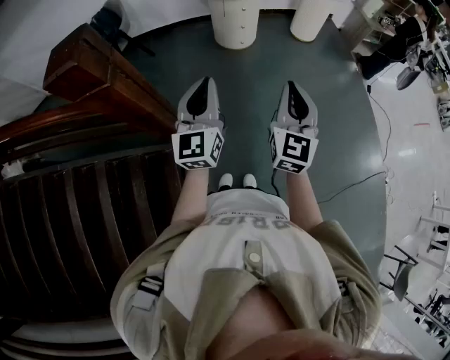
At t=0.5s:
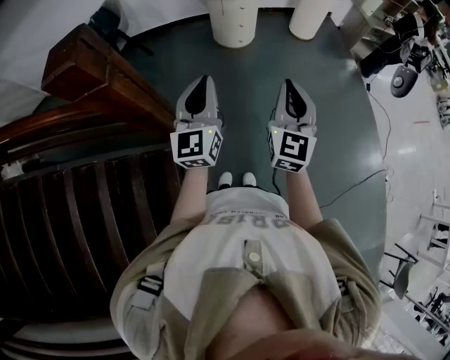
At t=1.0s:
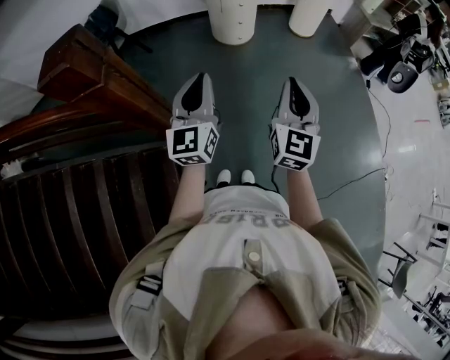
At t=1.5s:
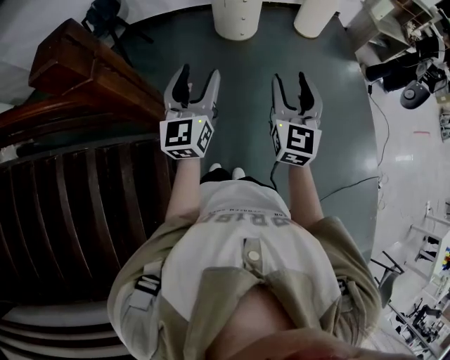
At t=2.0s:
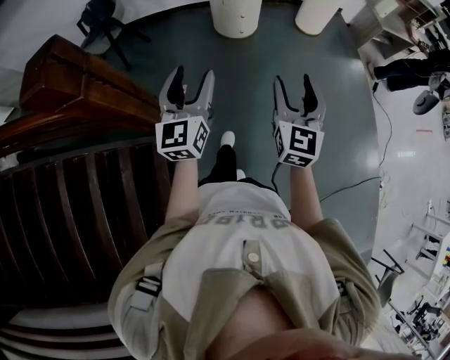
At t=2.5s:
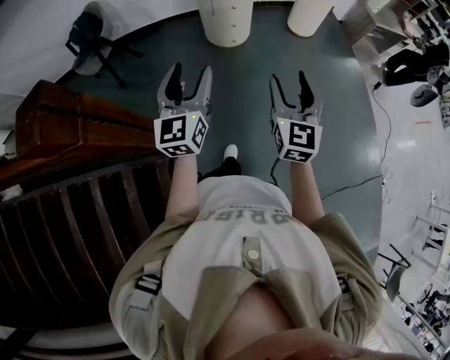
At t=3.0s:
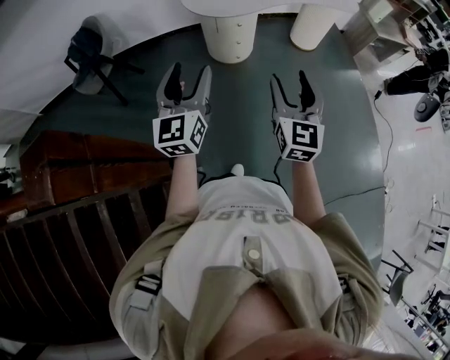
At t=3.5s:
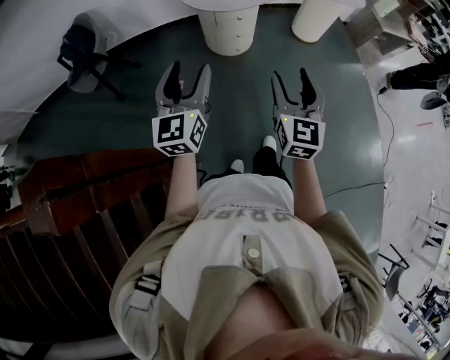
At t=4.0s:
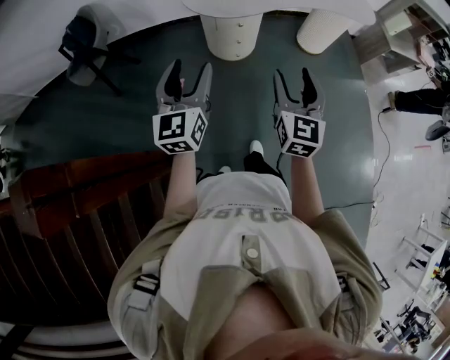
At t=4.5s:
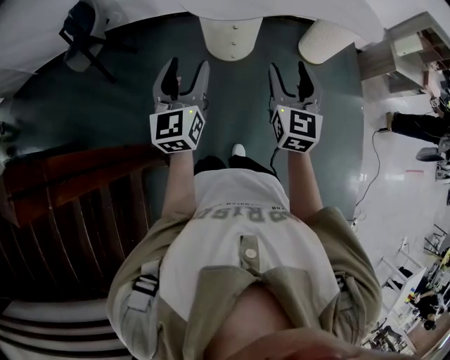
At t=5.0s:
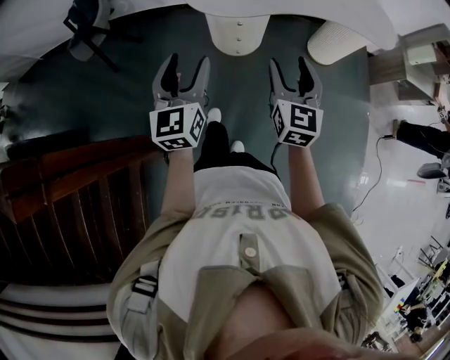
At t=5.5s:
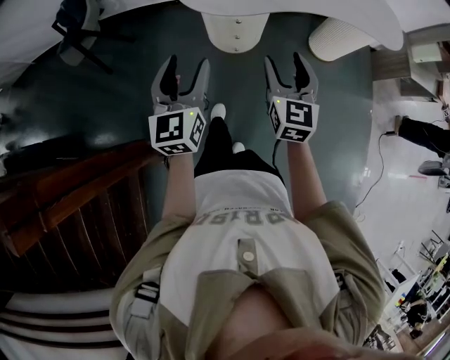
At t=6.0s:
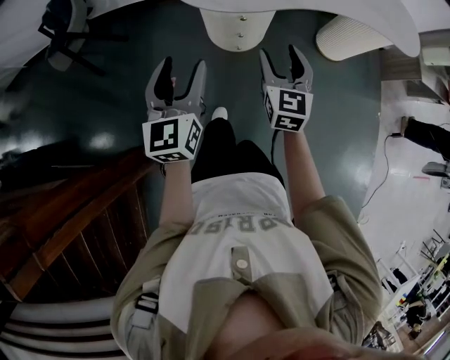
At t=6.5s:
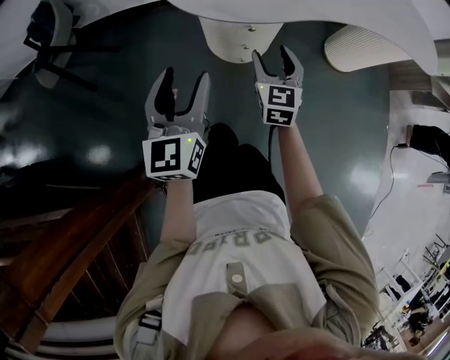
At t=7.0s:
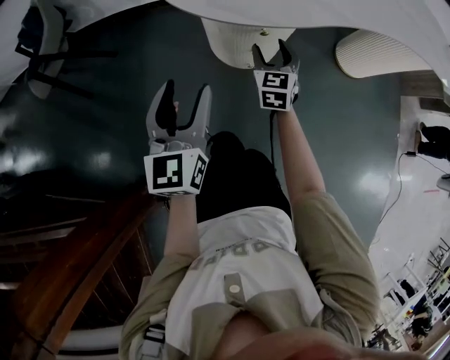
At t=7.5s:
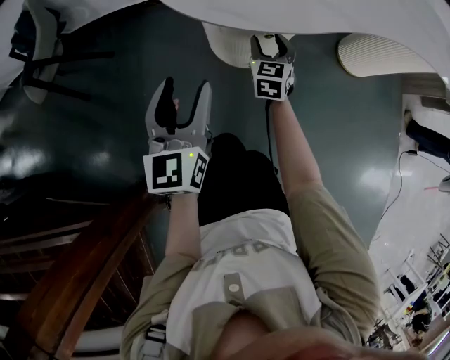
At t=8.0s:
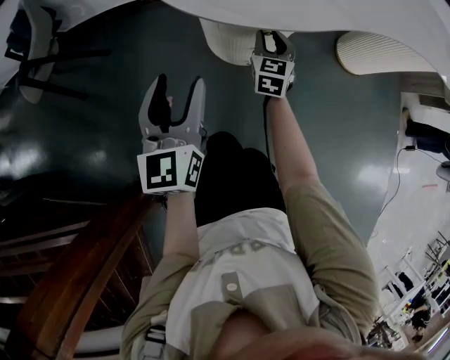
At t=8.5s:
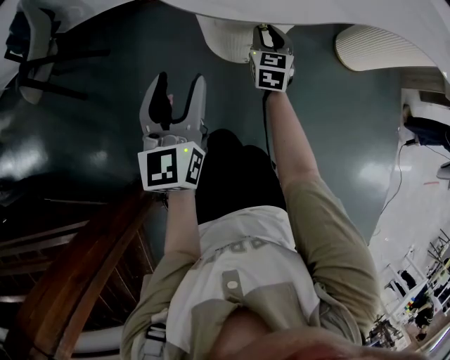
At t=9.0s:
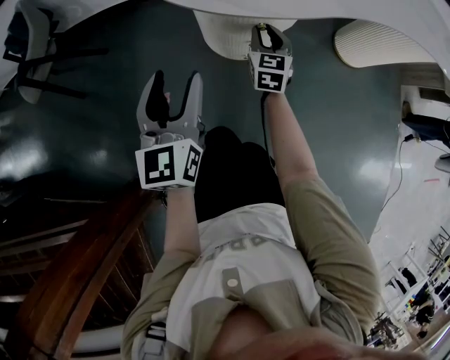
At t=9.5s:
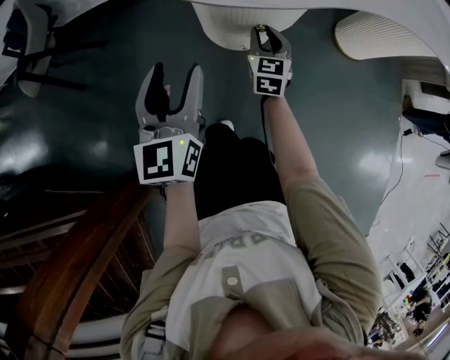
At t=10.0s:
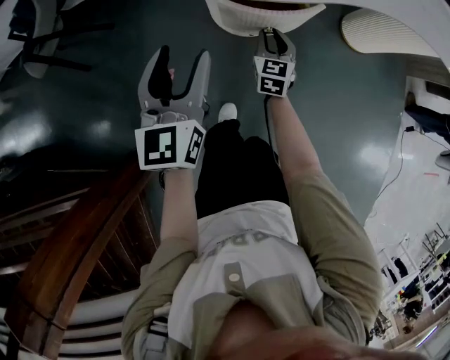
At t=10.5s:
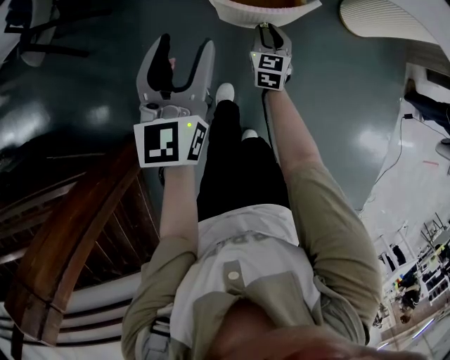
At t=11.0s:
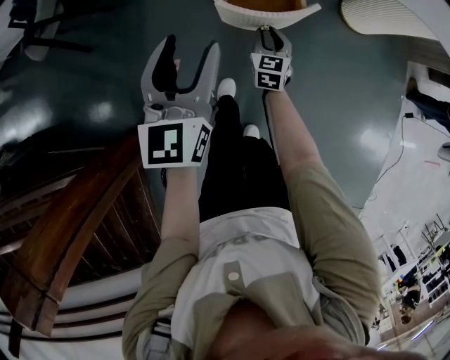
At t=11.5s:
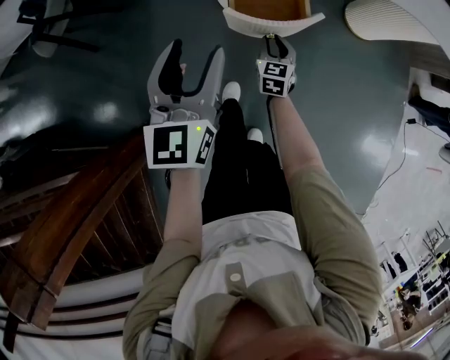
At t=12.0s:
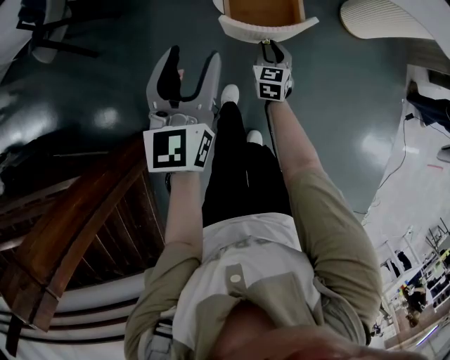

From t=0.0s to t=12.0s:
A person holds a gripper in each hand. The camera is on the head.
From t=0.0s to t=2.0s: The grippers both shift forward by about 10 cm. The right gripper opens; the left gripper opens up.
From t=2.0s to t=4.0s: Both grippers move forward, about 35 cm.
From t=4.0s to t=6.0s: Both grippers move forward and downward, approximately 30 cm.
From t=6.0s to t=8.0s: The left gripper goes about 25 cm downward and forward. Meanwhile the right gripper goes approximately 40 cm downward and forward, and closes.
From t=8.0s to t=10.0s: The left gripper heads upward, covering approximately 5 cm. The right gripper moves backward, roughly 10 cm.
From t=10.0s to t=12.0s: The left gripper is displaced backward and upward by some 10 cm. The right gripper shifts about 10 cm backward.

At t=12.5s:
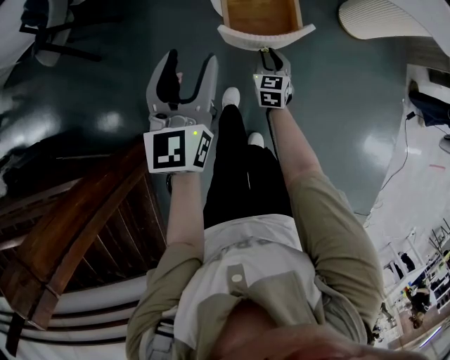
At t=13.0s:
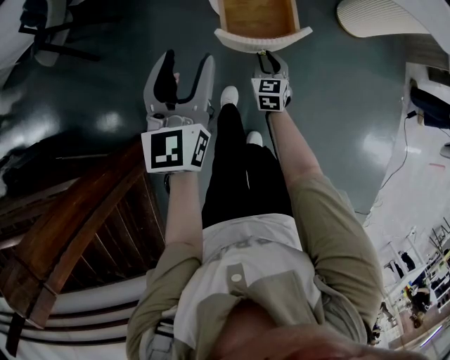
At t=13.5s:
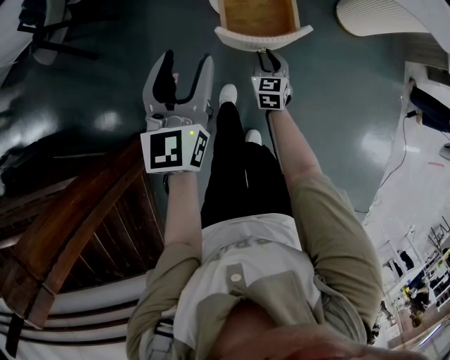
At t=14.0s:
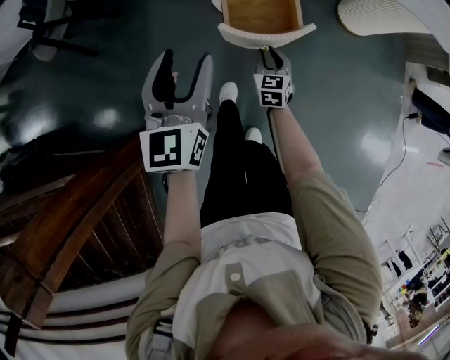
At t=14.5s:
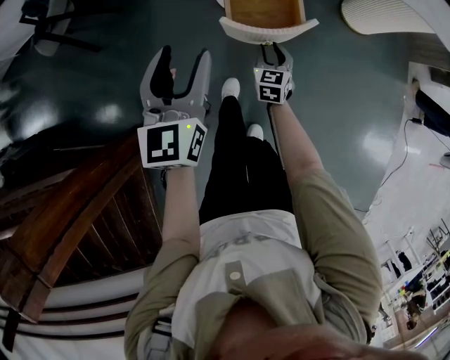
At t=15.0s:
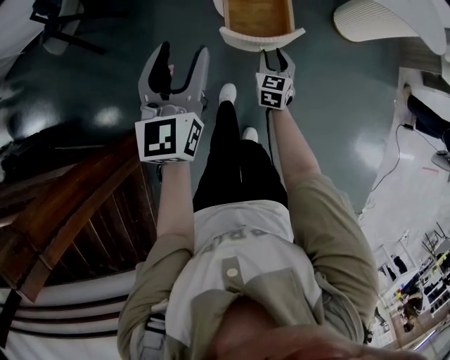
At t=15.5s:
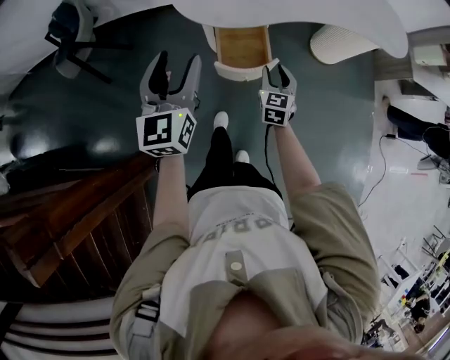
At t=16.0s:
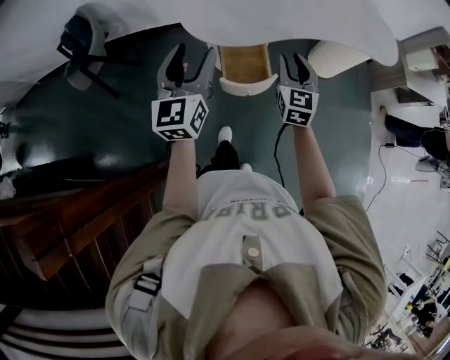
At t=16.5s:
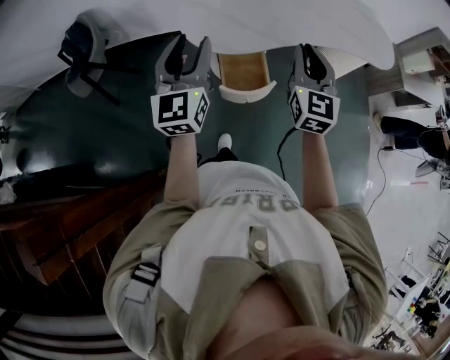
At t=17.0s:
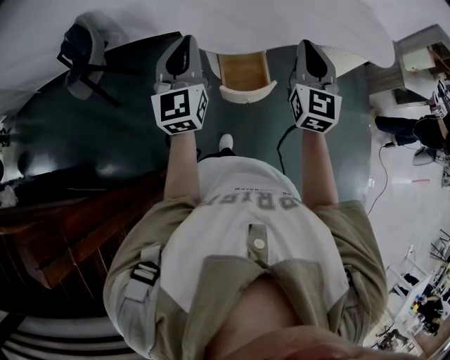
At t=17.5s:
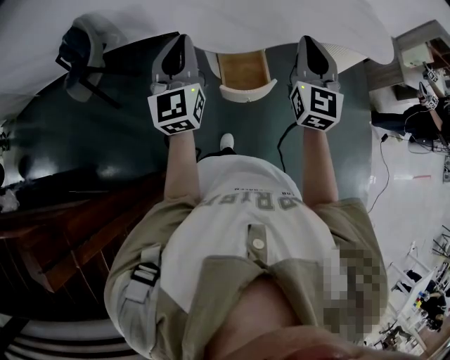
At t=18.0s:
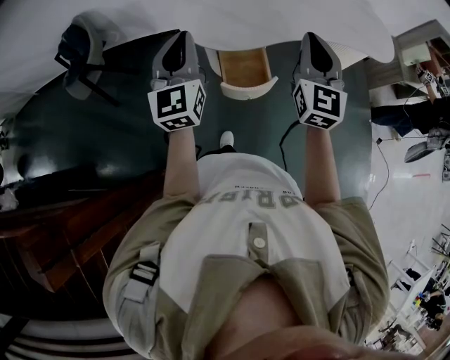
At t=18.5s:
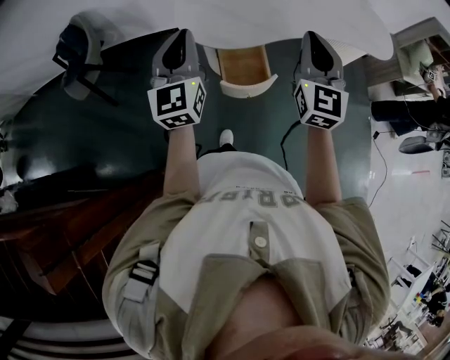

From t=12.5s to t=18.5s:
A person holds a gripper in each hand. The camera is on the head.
From t=12.5s to t=14.5s: The grippers stay close to where they were, moving slightly.
From t=14.5s to t=16.5s: The left gripper goes approximately 30 cm upward, while the right gripper moves upward, roughly 50 cm, and angles its fingers upward, by about 30 degrees.
From t=16.5s to t=18.5s: The left gripper closes up.

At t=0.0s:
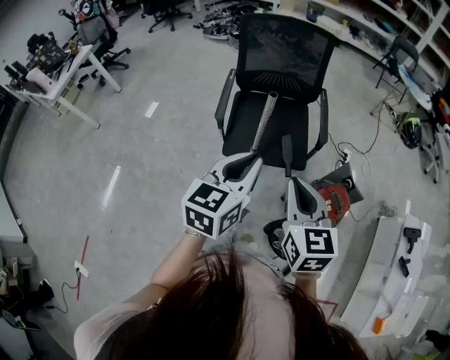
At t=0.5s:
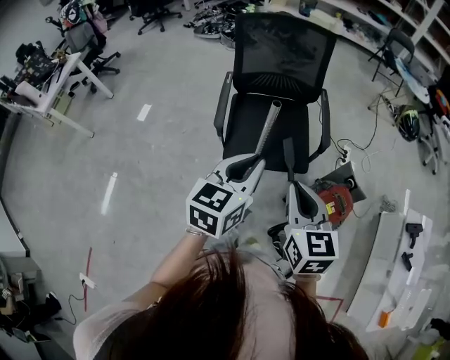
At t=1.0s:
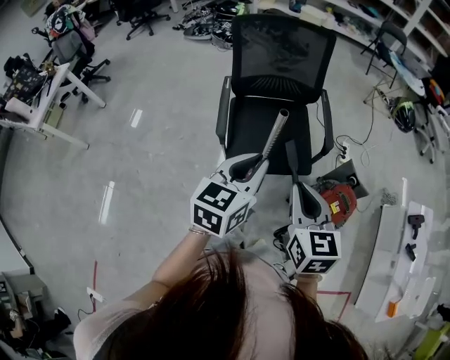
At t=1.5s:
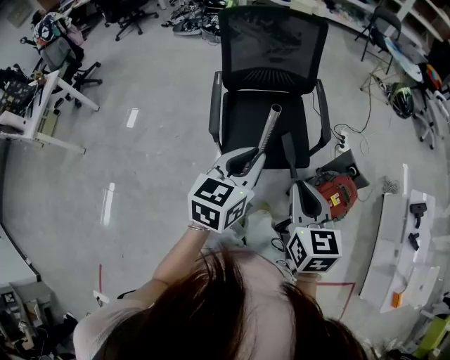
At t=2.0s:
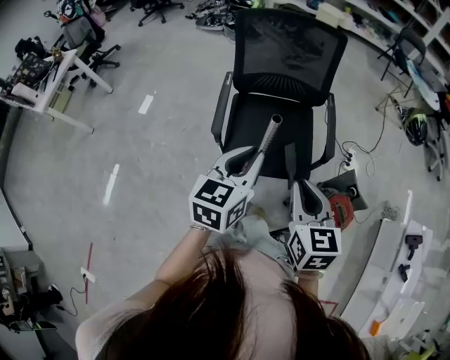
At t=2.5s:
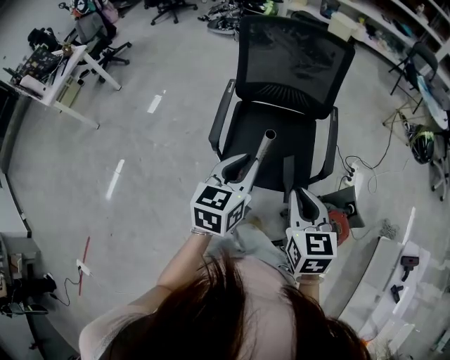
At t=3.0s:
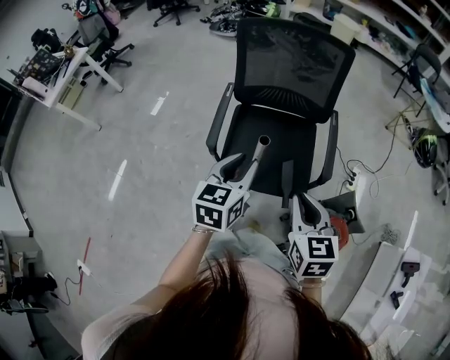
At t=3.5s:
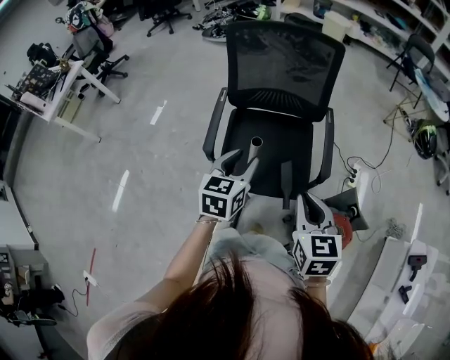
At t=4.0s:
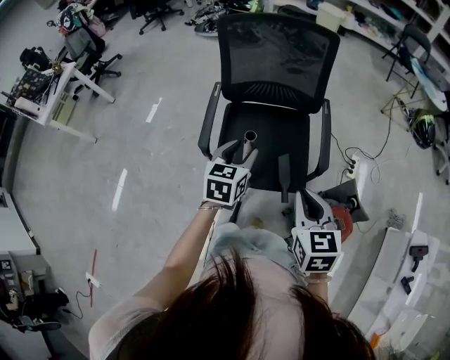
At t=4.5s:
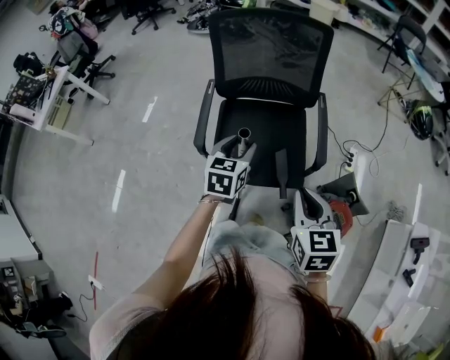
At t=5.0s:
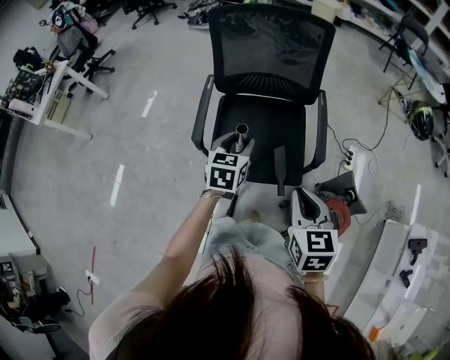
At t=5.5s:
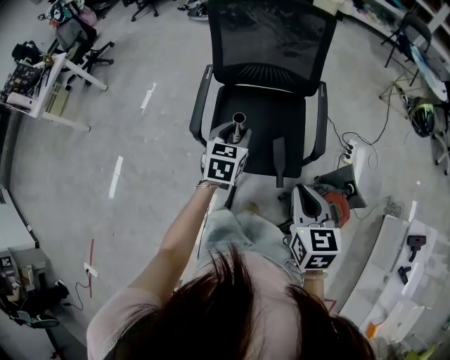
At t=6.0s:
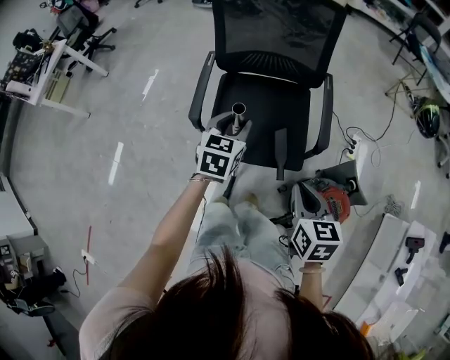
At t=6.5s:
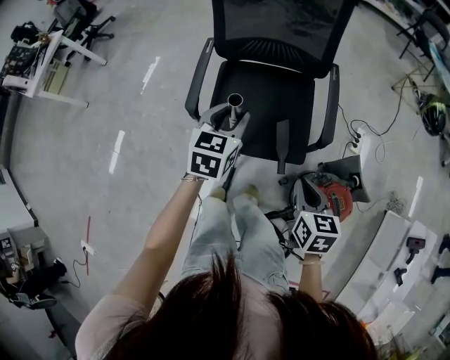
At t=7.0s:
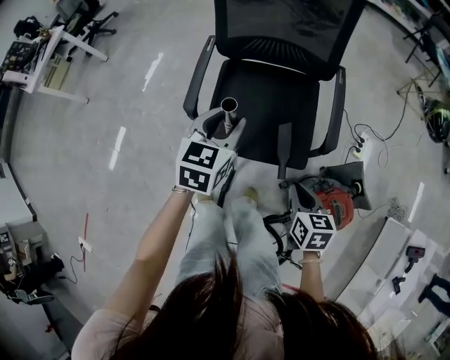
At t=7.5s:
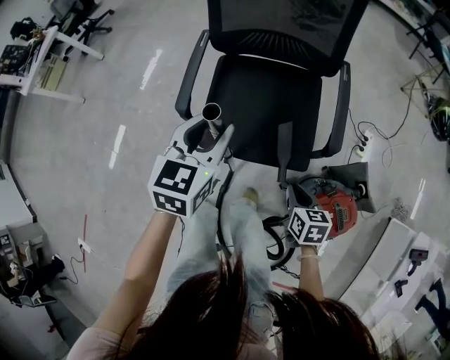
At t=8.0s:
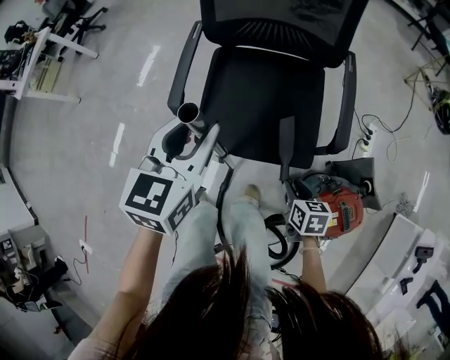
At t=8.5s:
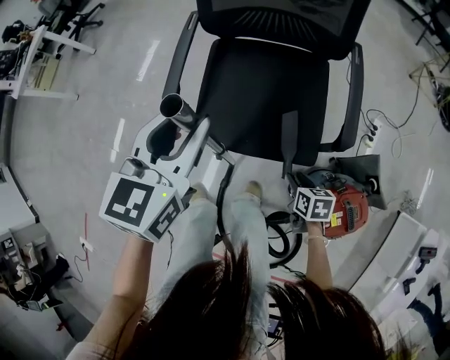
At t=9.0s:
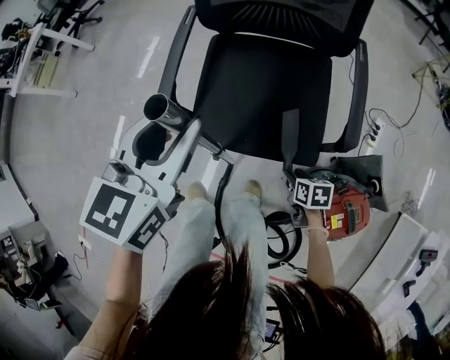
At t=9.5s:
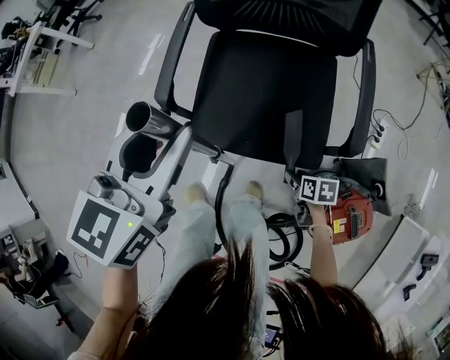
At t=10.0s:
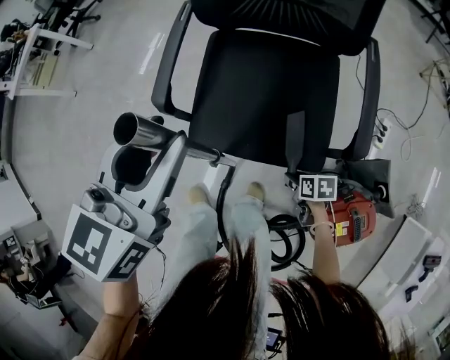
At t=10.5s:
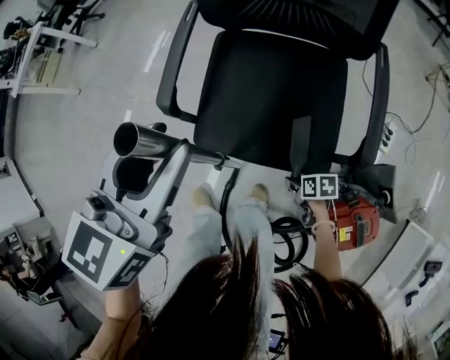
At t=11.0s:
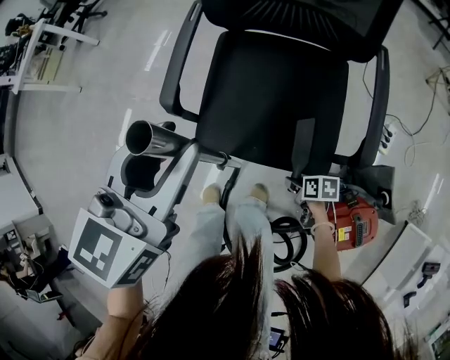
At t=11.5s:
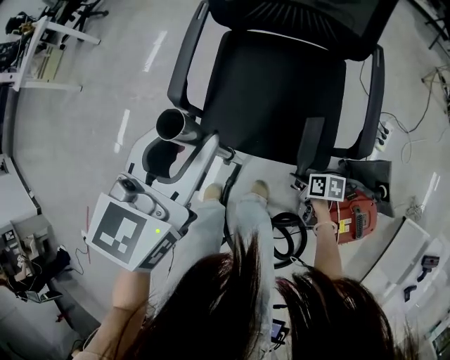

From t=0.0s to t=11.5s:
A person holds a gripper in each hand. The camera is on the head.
From t=0.0s to t=2.0s: Both grippers move forward, some 15 cm.
From t=2.0s to t=4.0s: The left gripper travels downward and forward by roughly 15 cm, and opens up; the right gripper heads to the right, forward and downward, covering roughly 10 cm.
From t=4.0s to t=6.0s: The right gripper moves downward, roughly 10 cm.
From t=6.0s to t=7.5s: The right gripper heads downward, covering some 25 cm.
From t=7.5s to t=9.5s: The right gripper goes about 20 cm downward, swivels some 20 degrees, and opens.
From t=9.5s to t=11.5s: The grippers move only a little.
